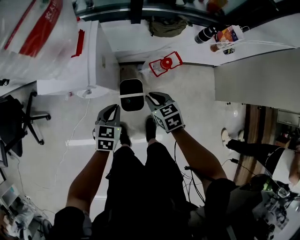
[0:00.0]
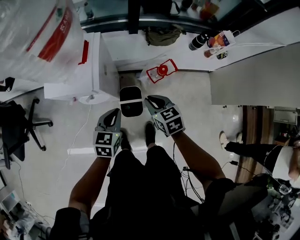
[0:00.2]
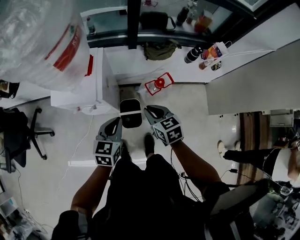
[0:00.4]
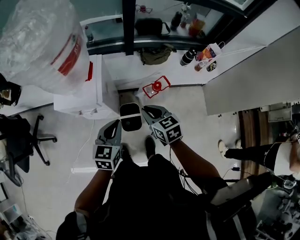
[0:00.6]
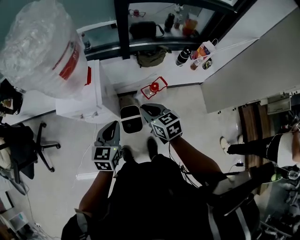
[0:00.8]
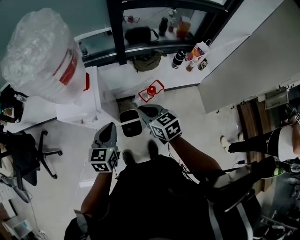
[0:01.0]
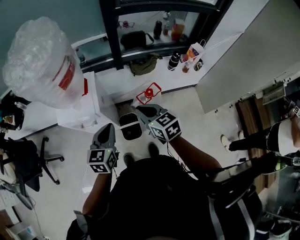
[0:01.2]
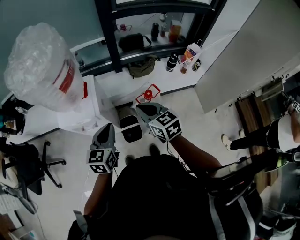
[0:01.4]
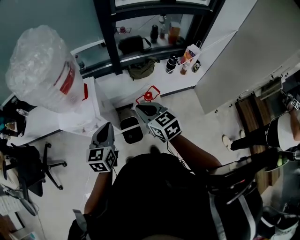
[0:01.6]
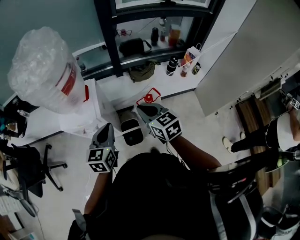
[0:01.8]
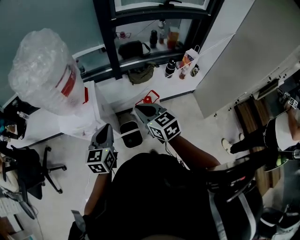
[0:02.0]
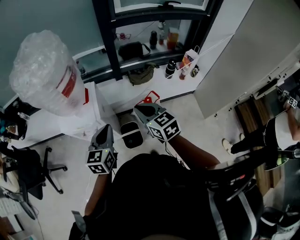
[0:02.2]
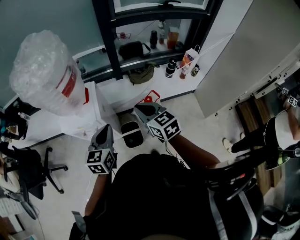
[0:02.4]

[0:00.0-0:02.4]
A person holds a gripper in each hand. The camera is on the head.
0:00.0 to 0:01.2: The two grippers go about 25 cm upward. The left gripper swivels about 20 degrees.
0:01.2 to 0:02.4: The right gripper moves some 5 cm.

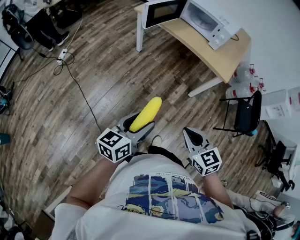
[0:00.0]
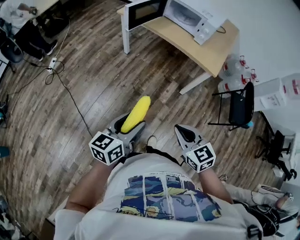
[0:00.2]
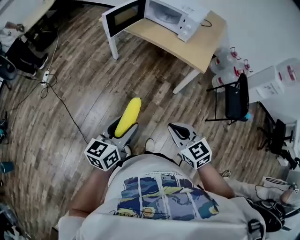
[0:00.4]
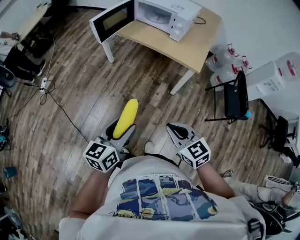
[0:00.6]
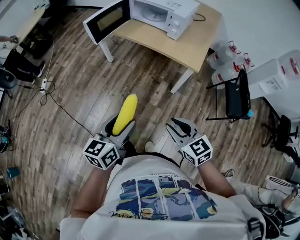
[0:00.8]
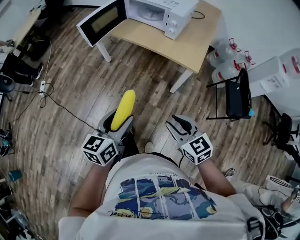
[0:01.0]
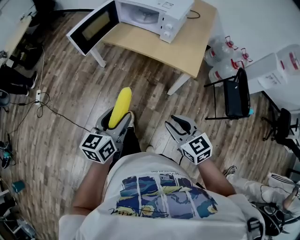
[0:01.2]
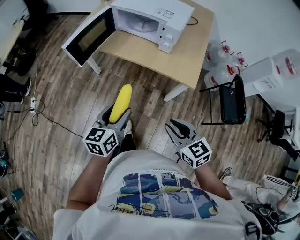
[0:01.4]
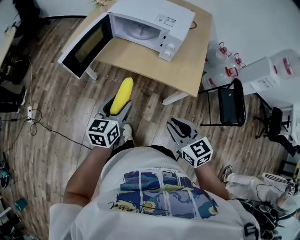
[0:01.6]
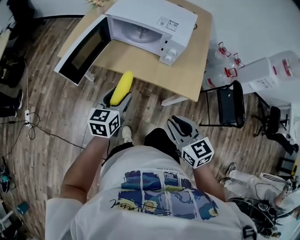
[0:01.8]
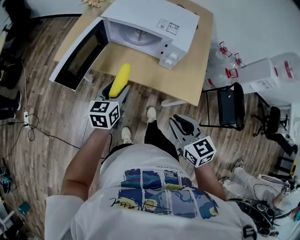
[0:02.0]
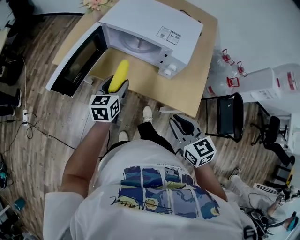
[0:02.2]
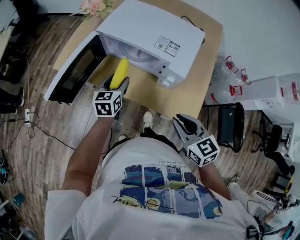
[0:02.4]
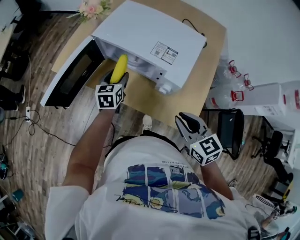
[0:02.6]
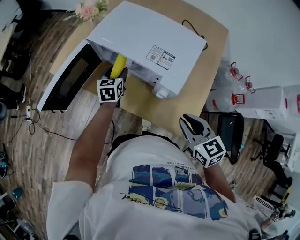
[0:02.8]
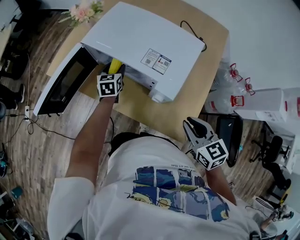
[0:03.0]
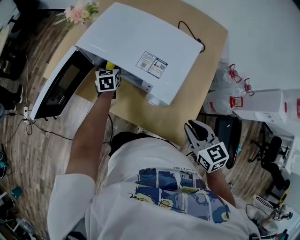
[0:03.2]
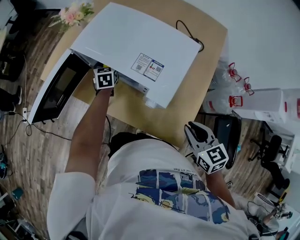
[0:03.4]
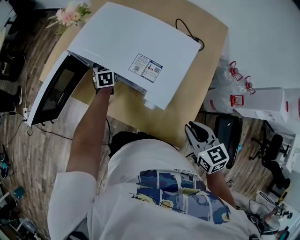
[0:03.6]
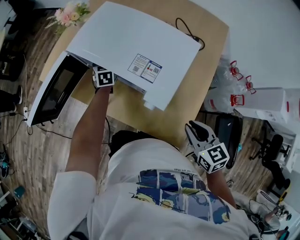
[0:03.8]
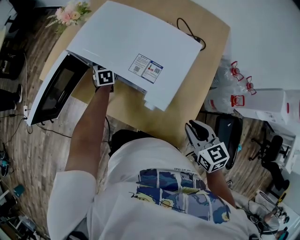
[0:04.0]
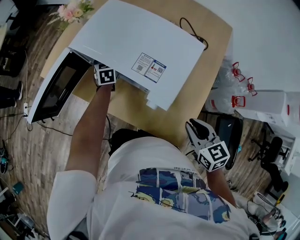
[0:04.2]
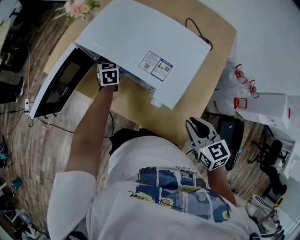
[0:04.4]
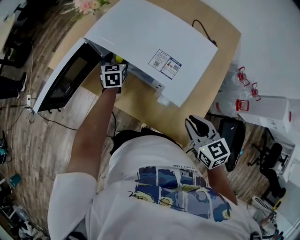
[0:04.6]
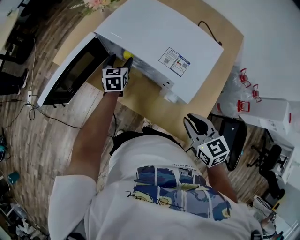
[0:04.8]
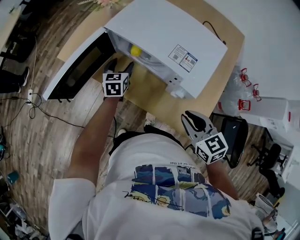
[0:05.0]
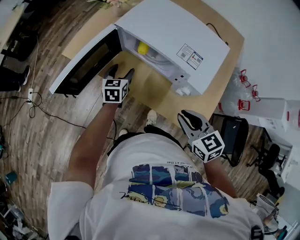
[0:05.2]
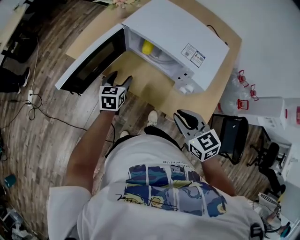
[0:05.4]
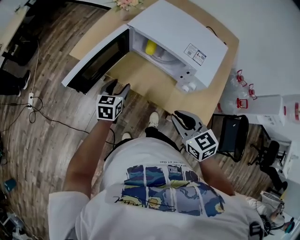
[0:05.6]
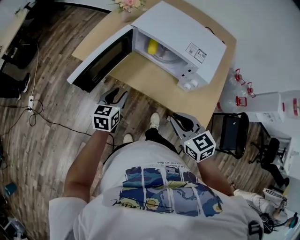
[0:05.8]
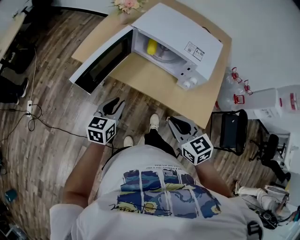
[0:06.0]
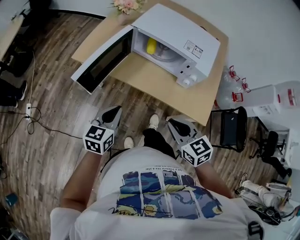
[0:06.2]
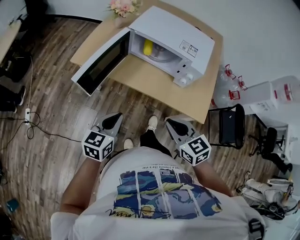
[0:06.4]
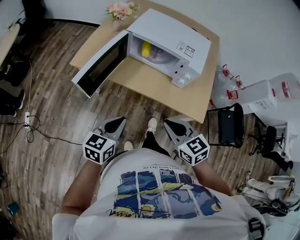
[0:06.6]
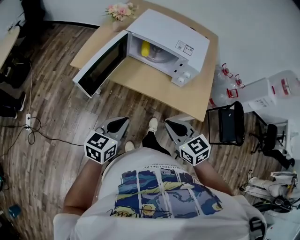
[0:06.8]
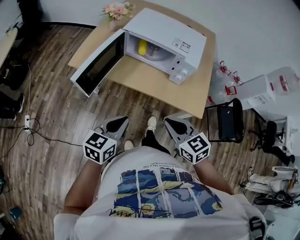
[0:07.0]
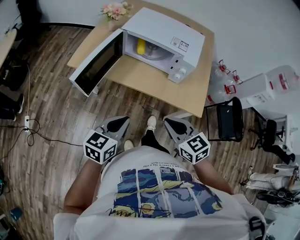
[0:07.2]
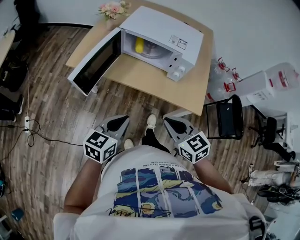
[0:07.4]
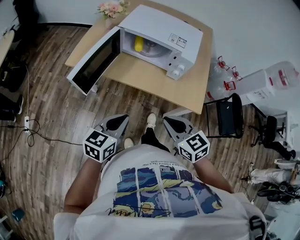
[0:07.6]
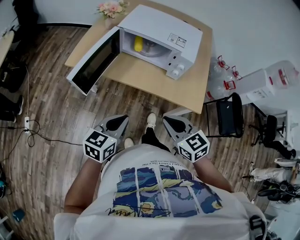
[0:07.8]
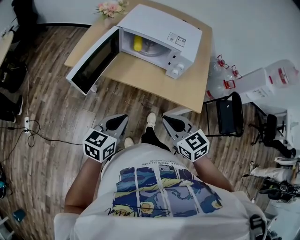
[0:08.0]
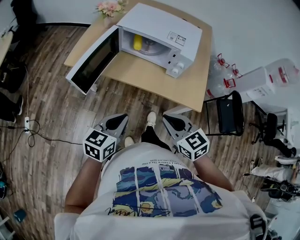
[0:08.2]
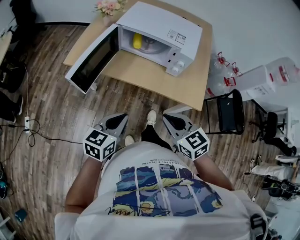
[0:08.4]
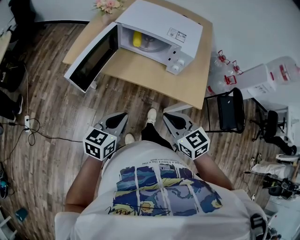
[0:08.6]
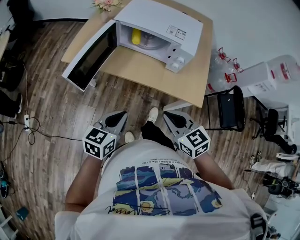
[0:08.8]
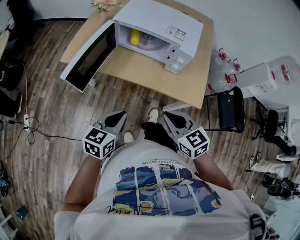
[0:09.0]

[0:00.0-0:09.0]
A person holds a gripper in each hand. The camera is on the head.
0:00.0 to 0:01.6: The right gripper goes some 35 cm forward and to the right, while the left gripper travels forward by roughly 40 cm.
0:01.6 to 0:03.0: The left gripper travels forward by about 40 cm, and rotates about 20 degrees, while the right gripper travels forward and to the right by some 35 cm.
0:03.0 to 0:04.4: The left gripper travels forward by approximately 5 cm.
0:04.4 to 0:06.0: The left gripper shifts roughly 40 cm backward and to the left, swivels some 30 degrees, and closes its fingers; the right gripper travels to the left by some 30 cm.
0:06.0 to 0:07.6: The right gripper travels backward by approximately 5 cm, while the left gripper goes roughly 15 cm backward and upward.
0:07.6 to 0:09.0: The grippers move only a little.

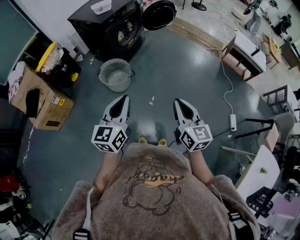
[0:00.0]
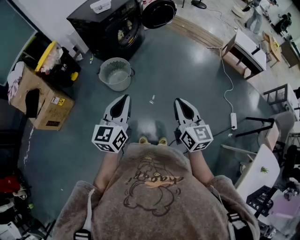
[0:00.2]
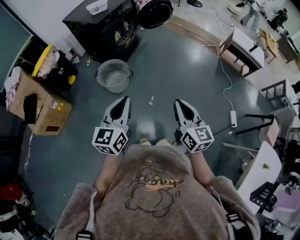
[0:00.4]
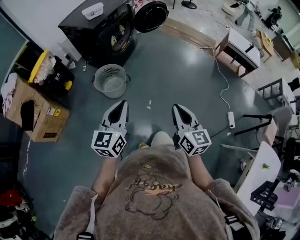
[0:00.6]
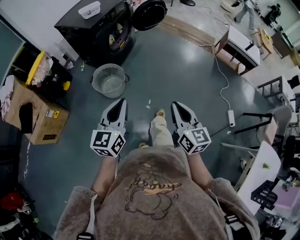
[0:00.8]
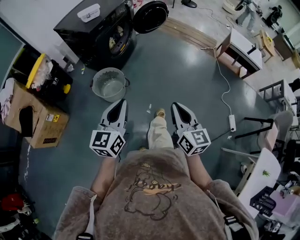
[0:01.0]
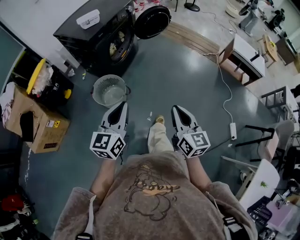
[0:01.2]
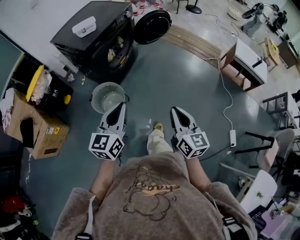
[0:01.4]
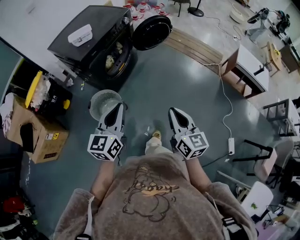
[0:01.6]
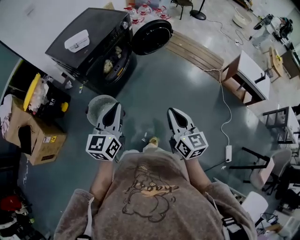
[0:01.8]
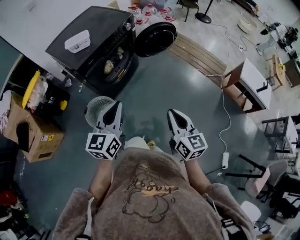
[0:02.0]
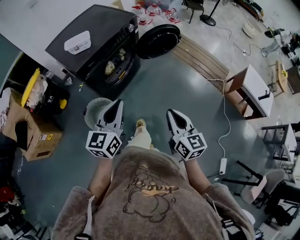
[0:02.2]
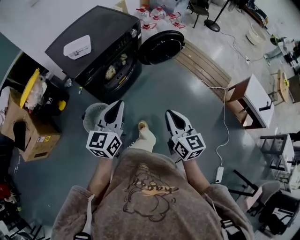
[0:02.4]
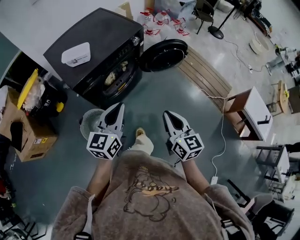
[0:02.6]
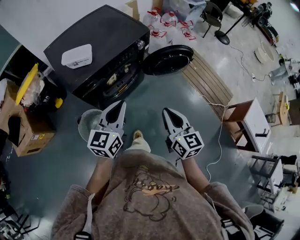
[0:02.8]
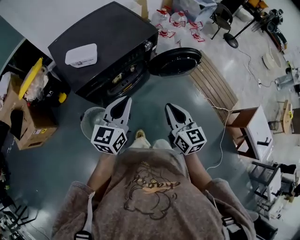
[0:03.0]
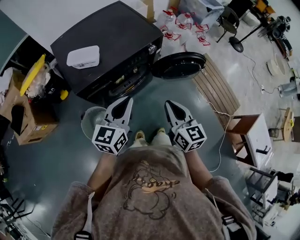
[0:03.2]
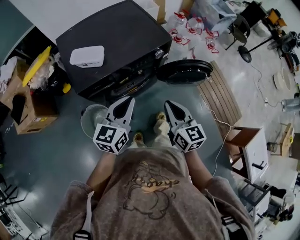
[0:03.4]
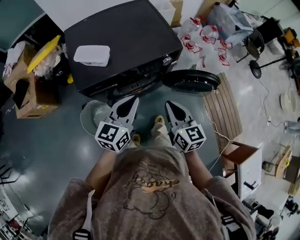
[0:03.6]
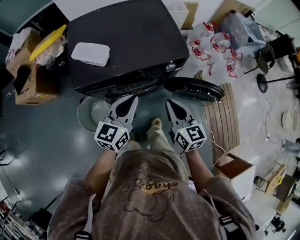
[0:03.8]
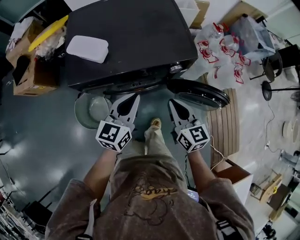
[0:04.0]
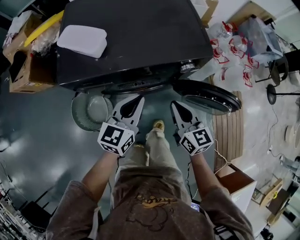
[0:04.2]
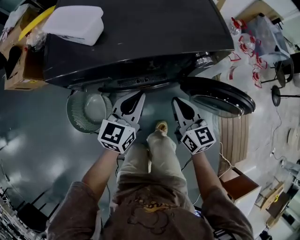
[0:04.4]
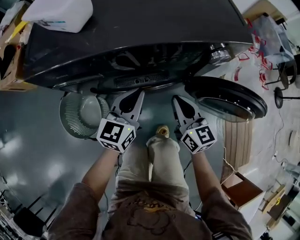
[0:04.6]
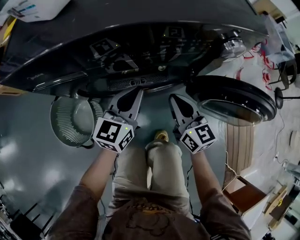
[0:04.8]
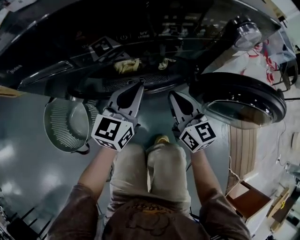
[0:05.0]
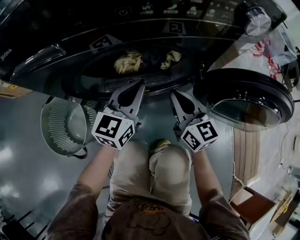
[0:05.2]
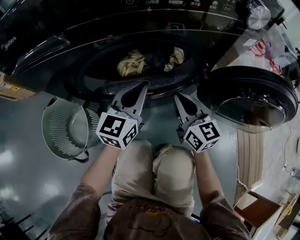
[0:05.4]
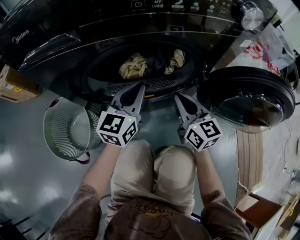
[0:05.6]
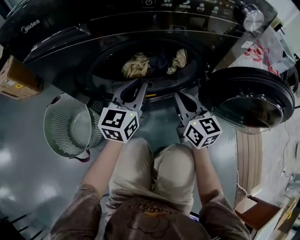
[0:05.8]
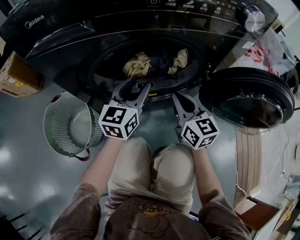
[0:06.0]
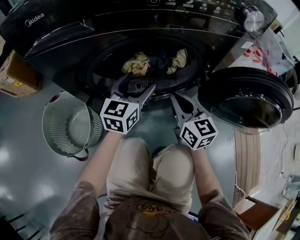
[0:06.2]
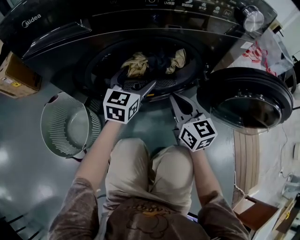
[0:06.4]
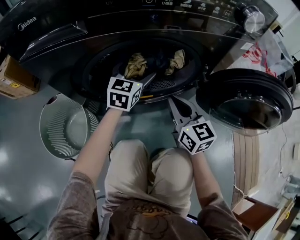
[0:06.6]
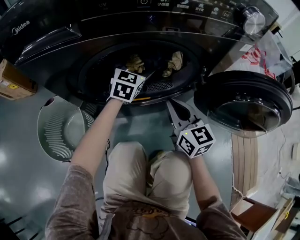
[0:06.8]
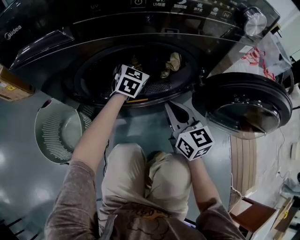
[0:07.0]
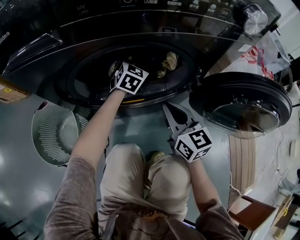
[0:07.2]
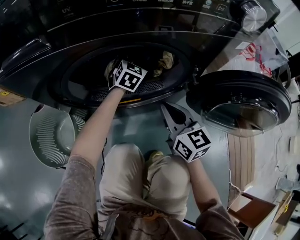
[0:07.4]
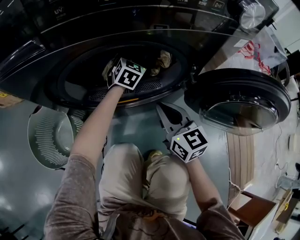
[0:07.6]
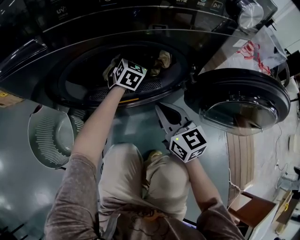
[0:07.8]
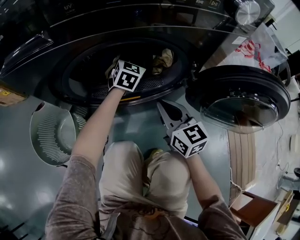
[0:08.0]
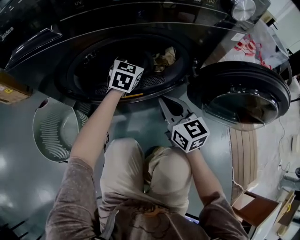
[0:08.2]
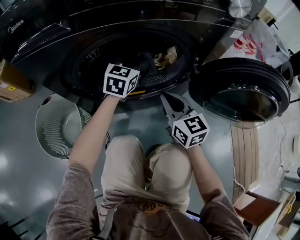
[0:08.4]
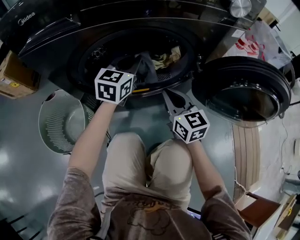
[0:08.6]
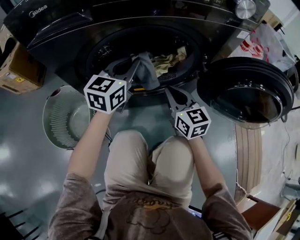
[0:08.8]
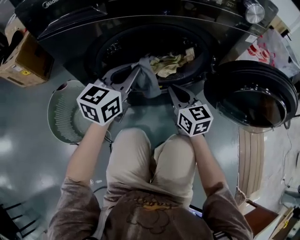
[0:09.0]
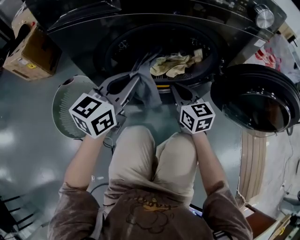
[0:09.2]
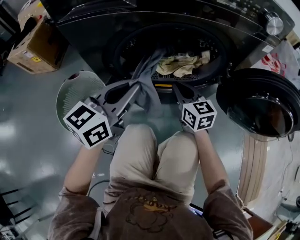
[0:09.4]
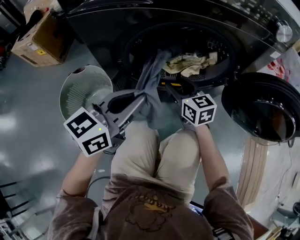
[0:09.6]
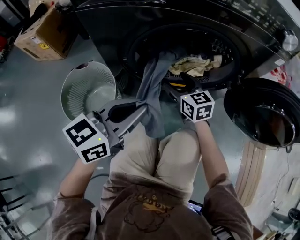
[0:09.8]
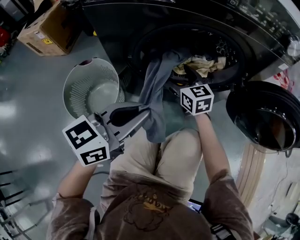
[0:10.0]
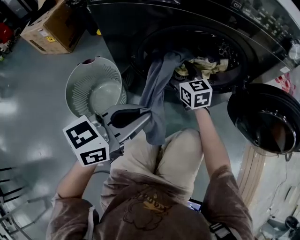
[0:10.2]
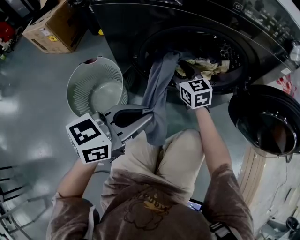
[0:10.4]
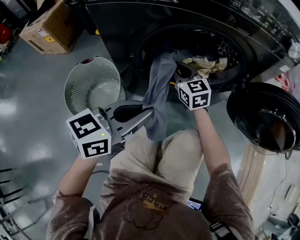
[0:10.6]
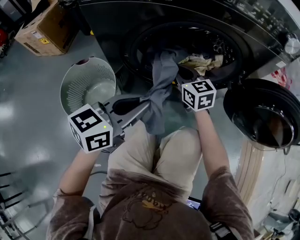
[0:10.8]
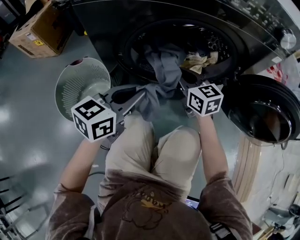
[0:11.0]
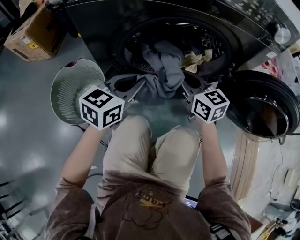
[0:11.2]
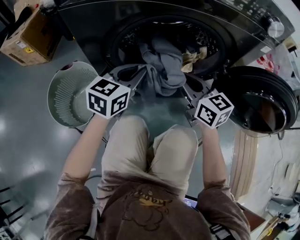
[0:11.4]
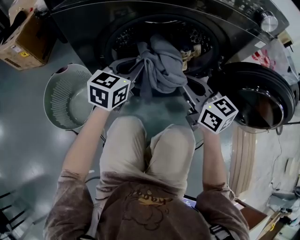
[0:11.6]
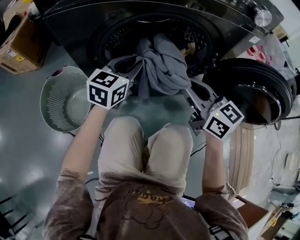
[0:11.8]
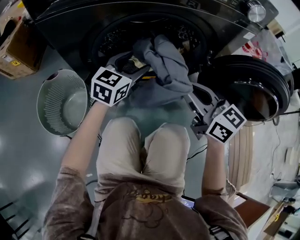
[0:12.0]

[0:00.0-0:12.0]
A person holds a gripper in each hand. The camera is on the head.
0:00.0 to 0:01.6: Both grippers travel together forward, about 30 cm.
0:01.6 to 0:03.0: Both grippers move forward, roughly 40 cm. The right gripper rotates roughly 20 degrees.
0:03.0 to 0:04.4: The grippers both shift downward by approximately 25 cm. The right gripper changes its angle by roughly 30 degrees. Meanwhile the left gripper changes its angle by some 20 degrees.
0:04.4 to 0:06.0: The two grippers go roughly 25 cm downward.
0:06.0 to 0:07.6: The left gripper moves forward, downward and to the right, about 25 cm, and rotates roughly 30 degrees.
0:07.6 to 0:09.0: The left gripper goes approximately 30 cm backward, upward and to the left, turns by roughly 30 degrees, and closes up.
0:09.0 to 0:10.4: The left gripper travels backward by about 15 cm. The right gripper travels to the left and forward by approximately 15 cm, and opens.
0:10.4 to 0:12.0: The left gripper is displaced forward and to the right by approximately 20 cm, turns by roughly 20 degrees, and opens up. The right gripper goes roughly 25 cm to the right, backward and upward, and closes its fingers.
